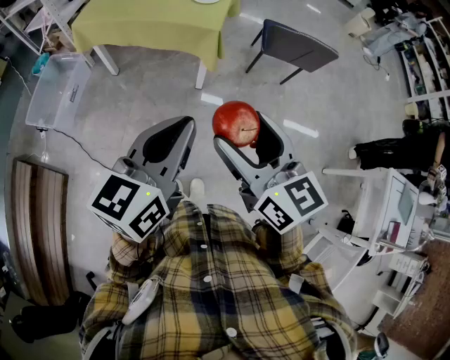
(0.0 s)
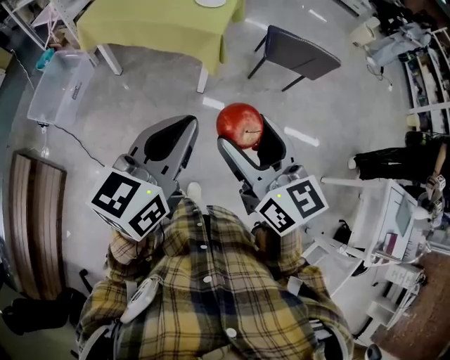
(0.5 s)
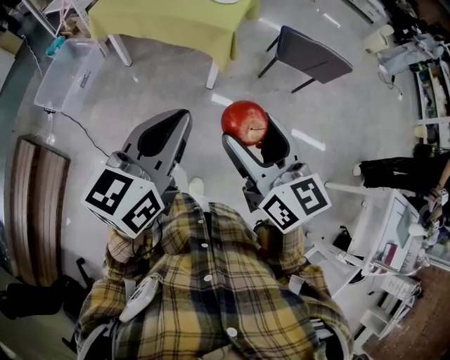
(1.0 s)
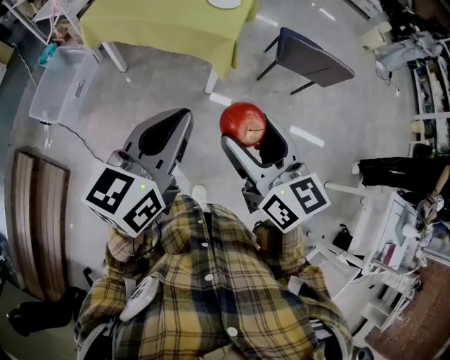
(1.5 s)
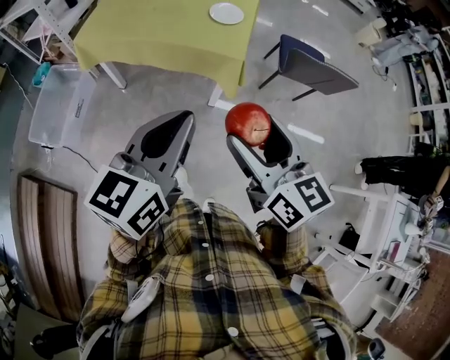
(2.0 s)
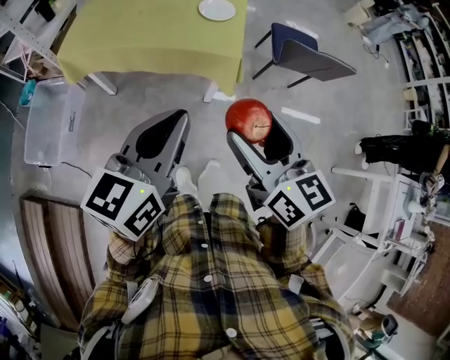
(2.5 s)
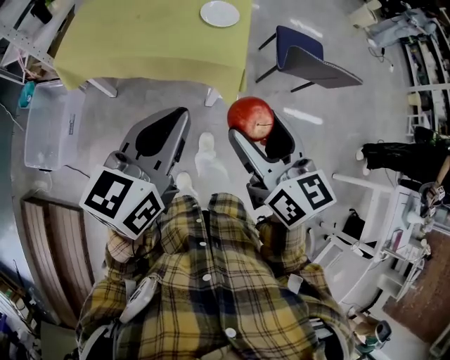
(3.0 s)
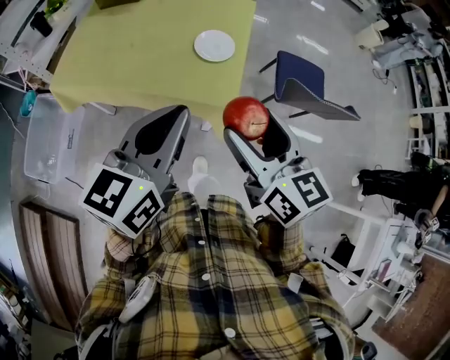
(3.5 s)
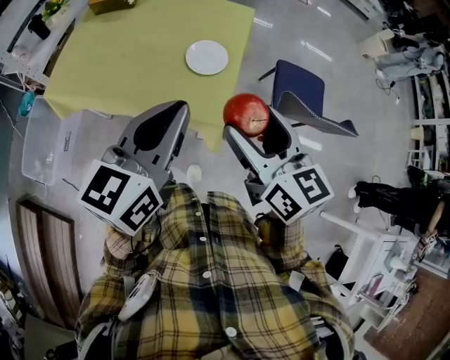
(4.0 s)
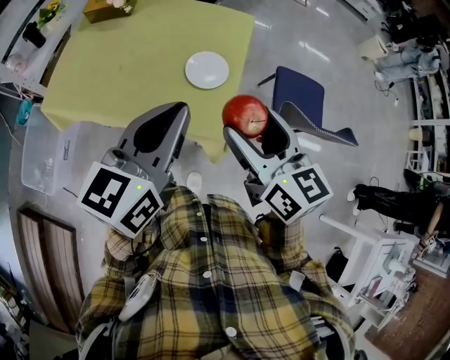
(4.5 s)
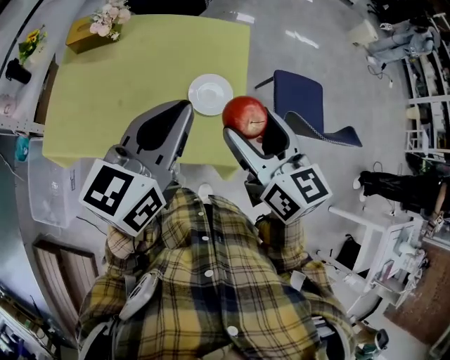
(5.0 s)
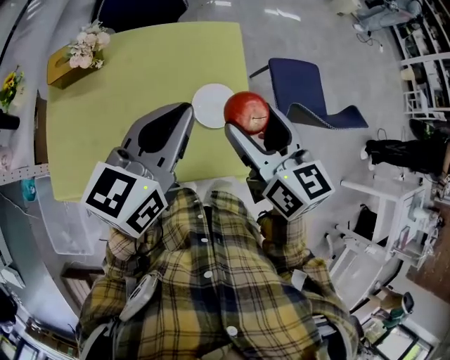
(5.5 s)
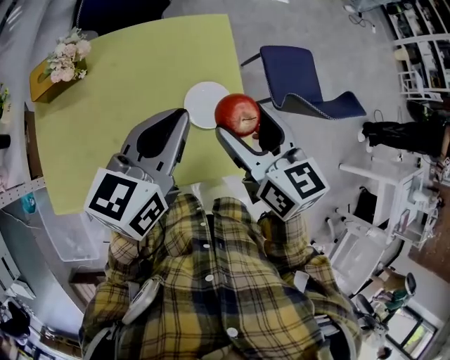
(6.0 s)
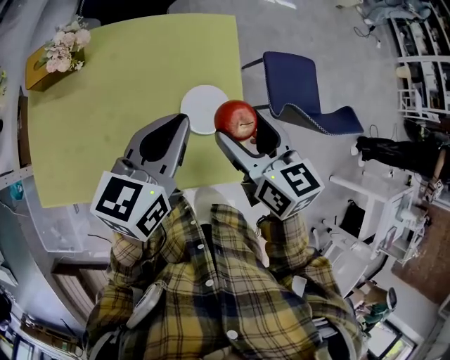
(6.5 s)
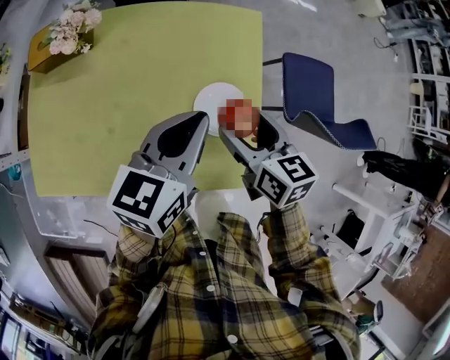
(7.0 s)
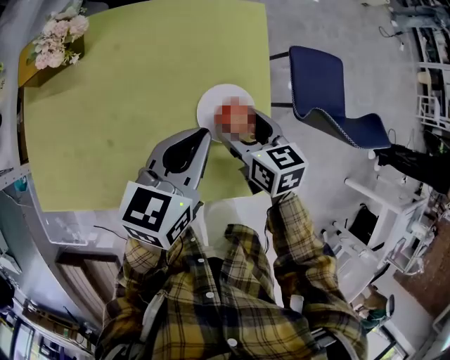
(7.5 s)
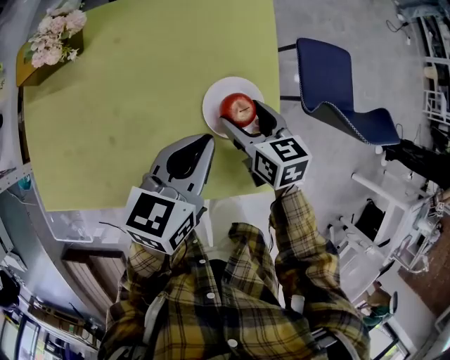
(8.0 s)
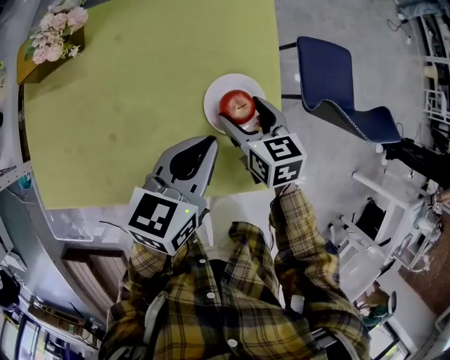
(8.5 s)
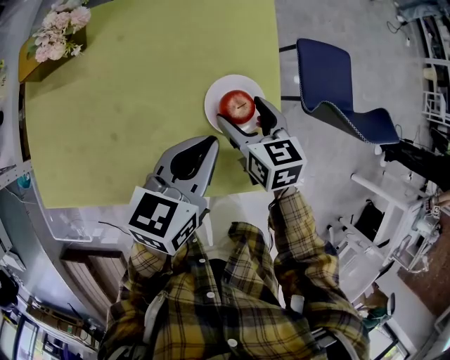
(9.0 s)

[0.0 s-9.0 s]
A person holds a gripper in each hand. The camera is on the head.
0.0 to 2.0 s: The right gripper shifts some 15 cm forward; the left gripper goes about 20 cm forward and to the left.
2.0 to 4.5 s: The grippers both shift forward by some 35 cm.
4.5 to 7.0 s: The left gripper goes some 25 cm forward and downward. Meanwhile the right gripper heads forward, downward and to the left, covering approximately 30 cm, and swivels about 20 degrees.
7.0 to 9.0 s: Both grippers travel together downward, some 10 cm.

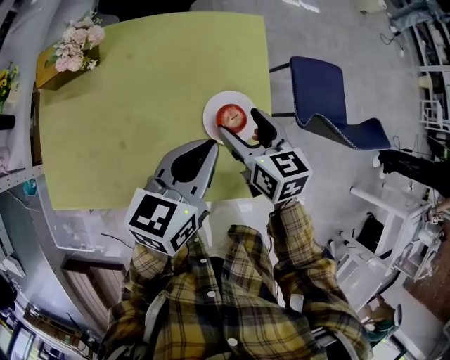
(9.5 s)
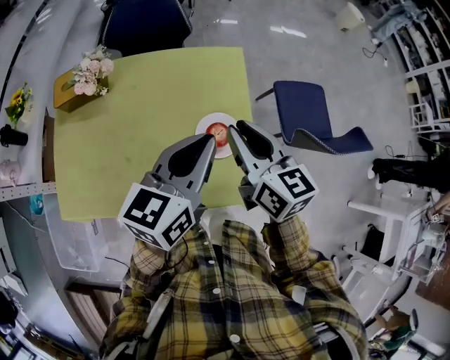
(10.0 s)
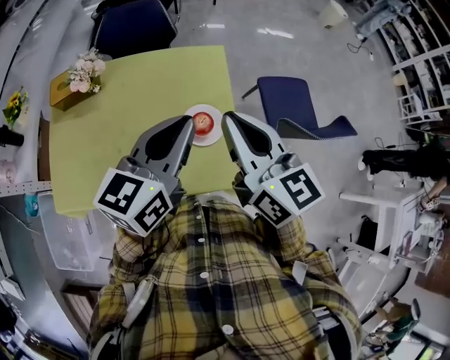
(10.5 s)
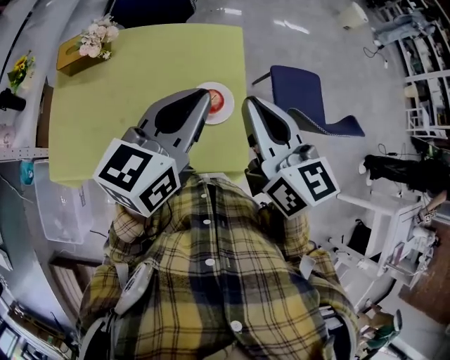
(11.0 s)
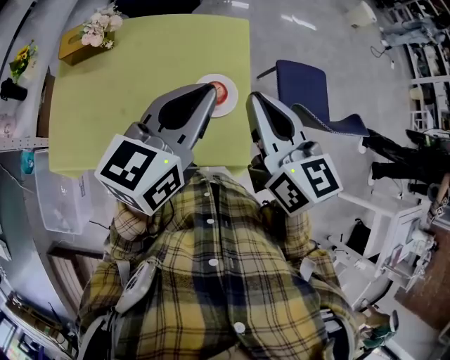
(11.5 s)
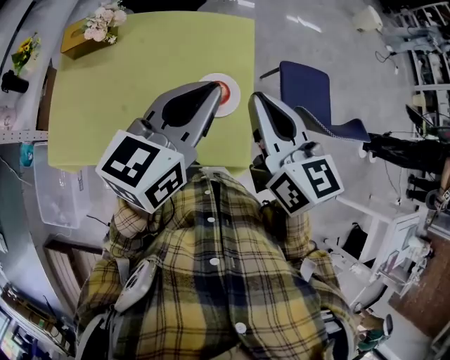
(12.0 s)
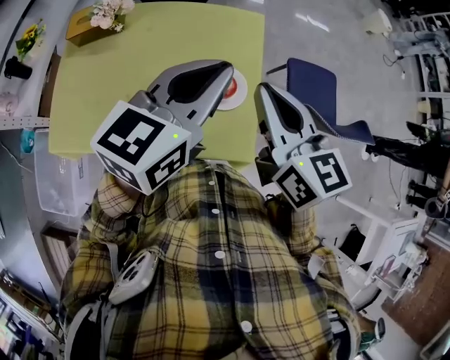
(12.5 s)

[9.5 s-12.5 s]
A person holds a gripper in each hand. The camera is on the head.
9.5 to 11.0 s: The two grippers go about 20 cm upward. The right gripper turns by about 20 degrees, and closes.
11.0 to 12.5 s: There are only small adjustments of the grippers.

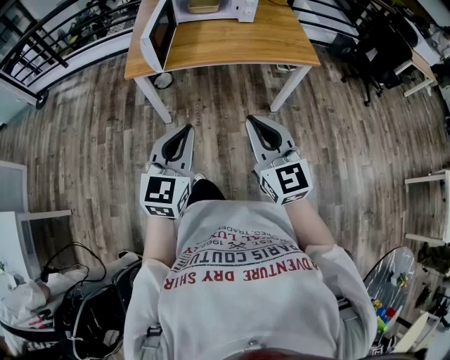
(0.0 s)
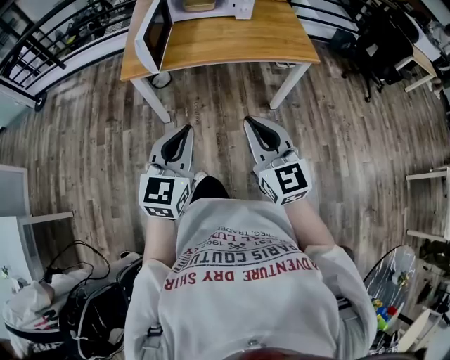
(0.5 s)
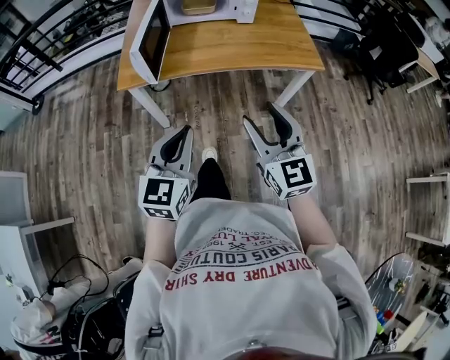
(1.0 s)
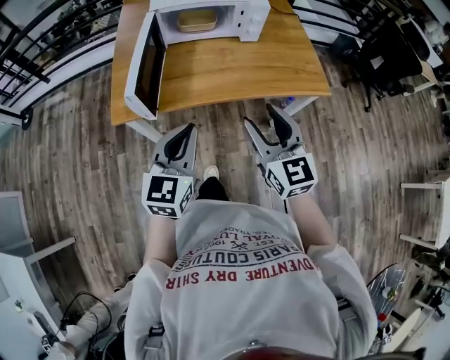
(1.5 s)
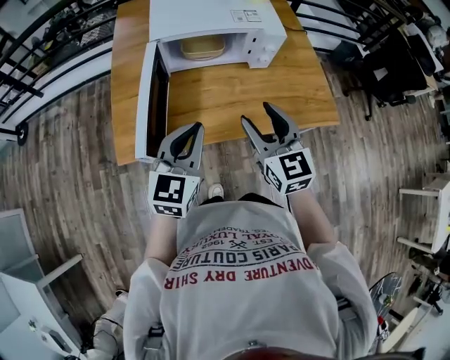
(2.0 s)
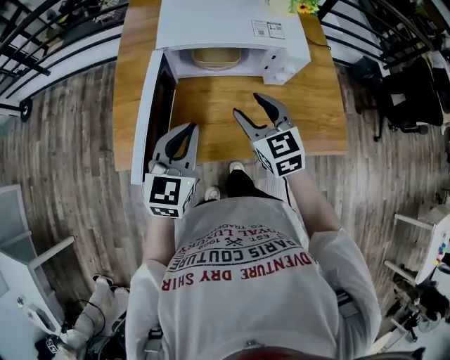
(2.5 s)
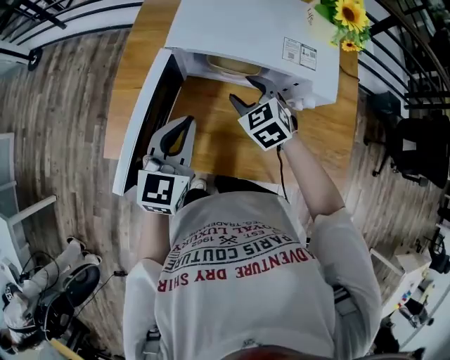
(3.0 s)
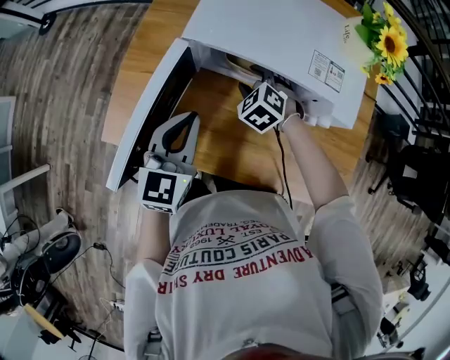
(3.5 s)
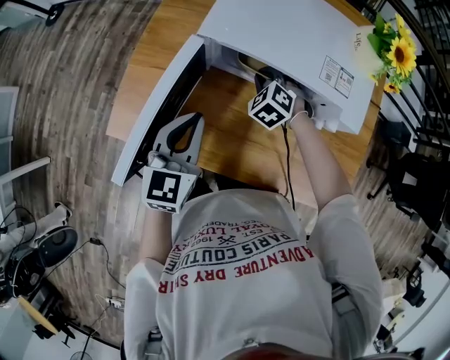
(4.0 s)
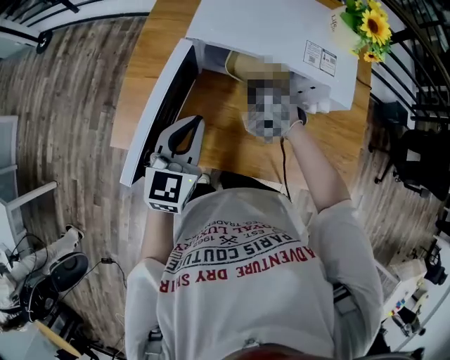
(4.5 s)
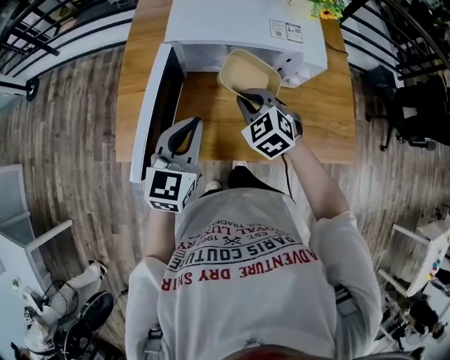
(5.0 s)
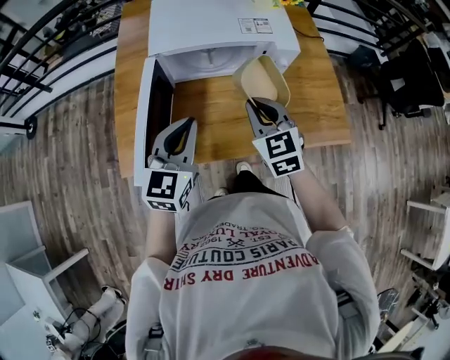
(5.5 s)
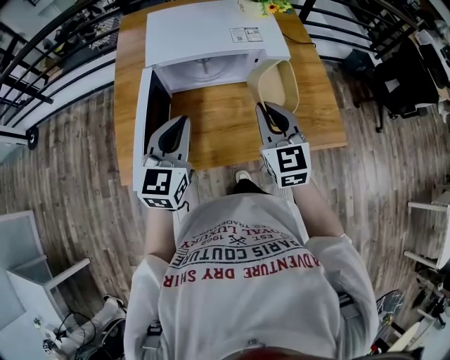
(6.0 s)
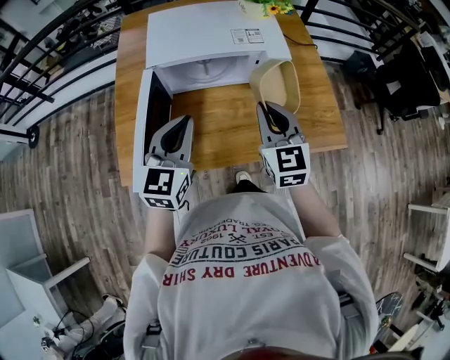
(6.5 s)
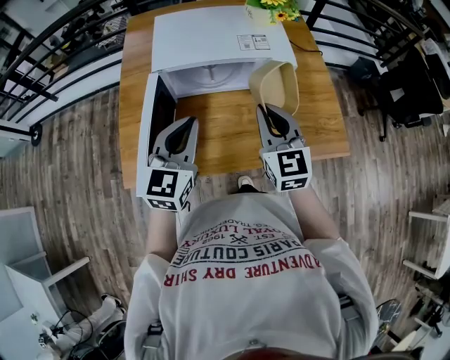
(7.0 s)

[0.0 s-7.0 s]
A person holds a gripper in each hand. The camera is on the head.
0.0 to 2.0 s: The two grippers travel together, forward, about 40 cm. The right gripper opens.
2.0 to 3.5 s: The right gripper moves forward and downward, some 35 cm, and angles its fingers downward, by roughly 40 degrees, while the left gripper is displaced forward by about 15 cm, and swivels roughly 30 degrees.
3.5 to 5.0 s: The left gripper is displaced backward by about 5 cm. The right gripper moves backward and upward, about 15 cm, turns by approximately 20 degrees, and closes.
5.0 to 7.0 s: The left gripper moves upward, some 5 cm; the right gripper heads upward and to the right, covering some 15 cm, and tips its fingers upward by roughly 30 degrees.

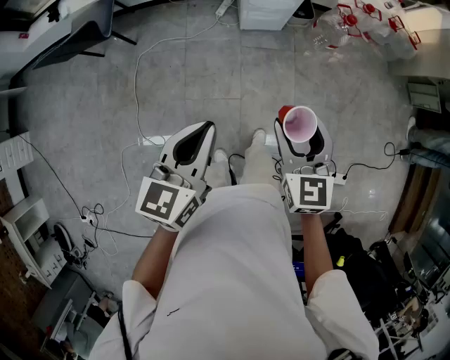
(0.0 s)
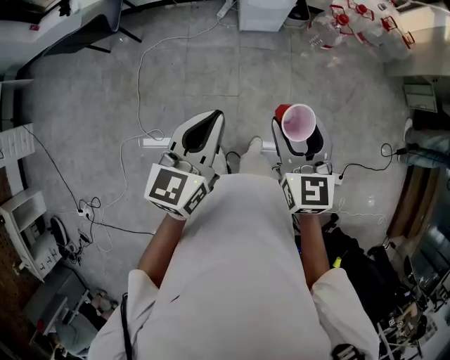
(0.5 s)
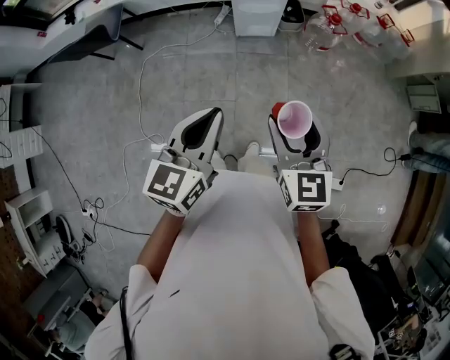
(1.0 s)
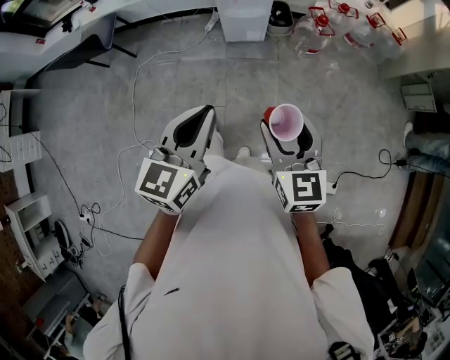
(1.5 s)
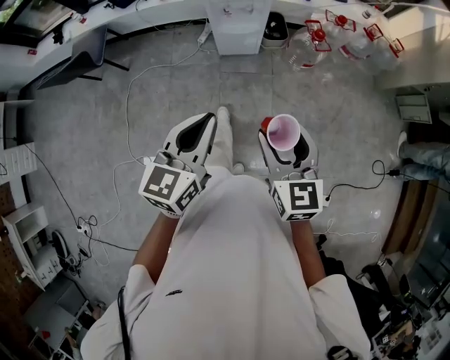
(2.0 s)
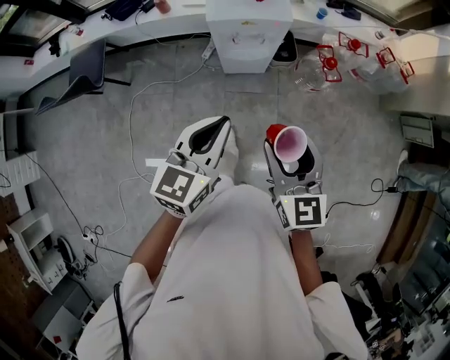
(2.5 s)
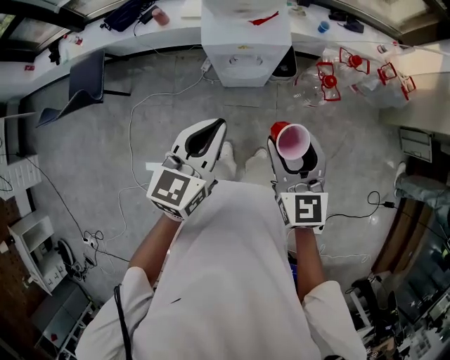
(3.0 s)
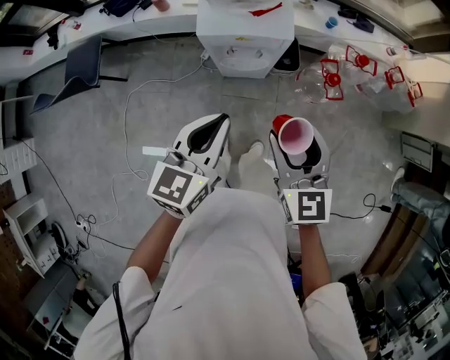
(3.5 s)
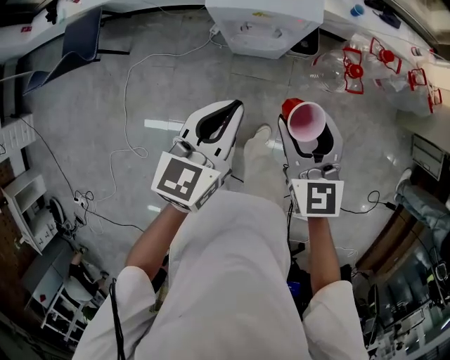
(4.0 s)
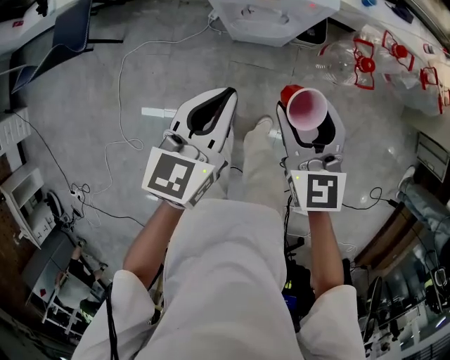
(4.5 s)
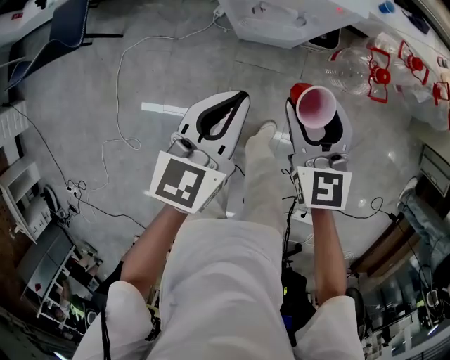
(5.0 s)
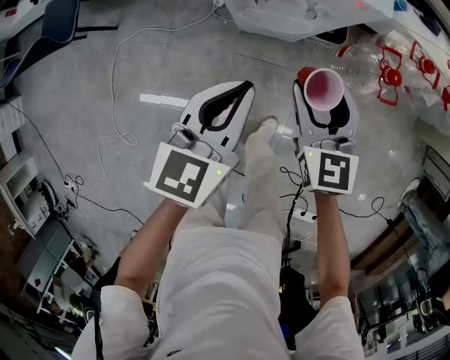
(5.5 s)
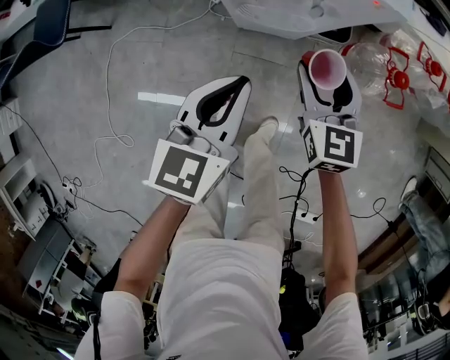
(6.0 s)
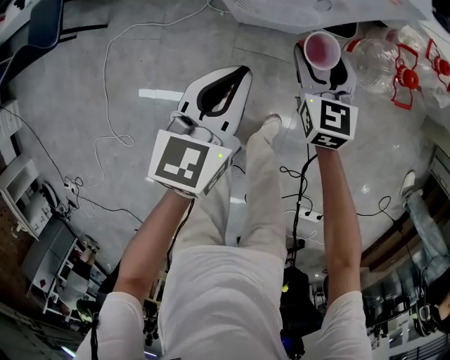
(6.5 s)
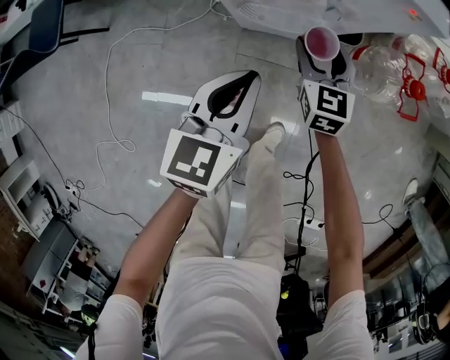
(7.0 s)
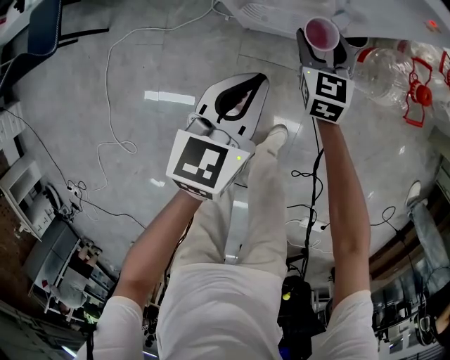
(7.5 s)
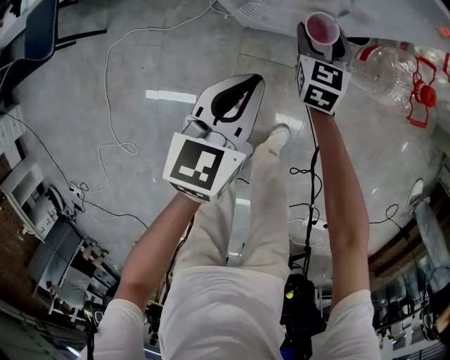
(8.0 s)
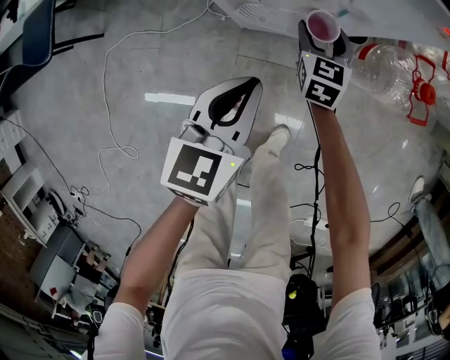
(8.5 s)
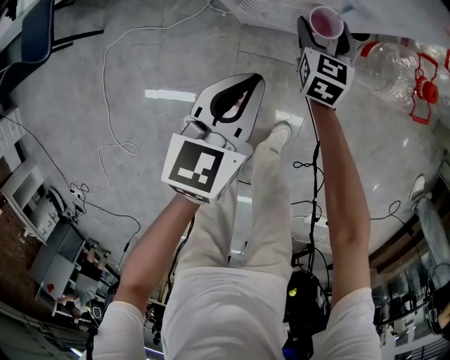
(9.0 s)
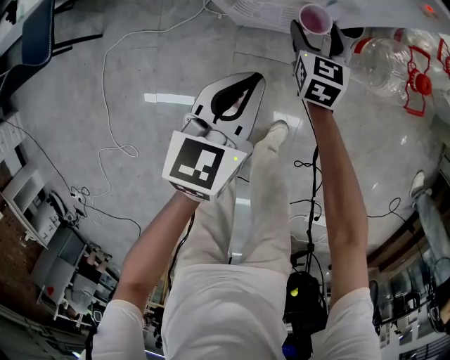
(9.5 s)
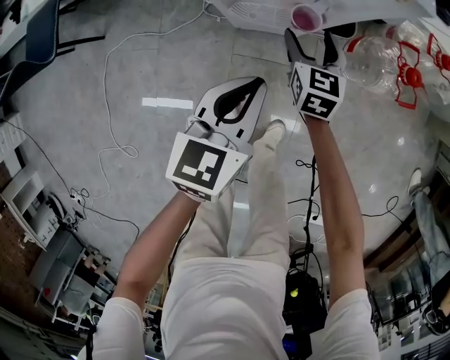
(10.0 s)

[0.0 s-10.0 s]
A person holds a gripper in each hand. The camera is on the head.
0.0 to 2.0 s: The left gripper shifts some 20 cm to the right and forward; the right gripper travels to the right by some 15 cm.
2.0 to 4.0 s: Both grippers move forward, some 30 cm.
4.0 to 6.0 s: The left gripper moves downward, about 20 cm. The right gripper travels downward and forward by some 30 cm.
6.0 to 8.0 s: The left gripper is displaced downward by some 10 cm. The right gripper goes approximately 20 cm downward and forward.
8.0 to 10.0 s: The right gripper changes place by approximately 5 cm; the left gripper shifts by approximately 5 cm.
